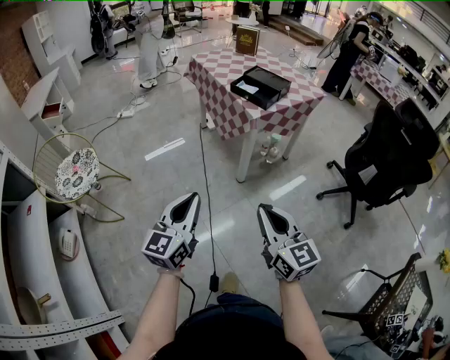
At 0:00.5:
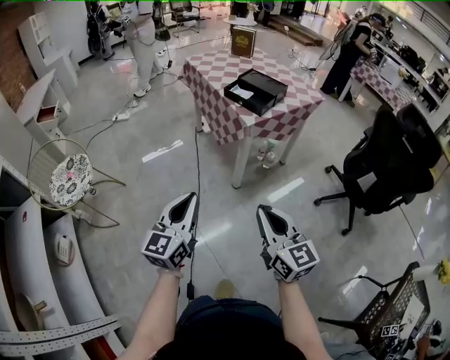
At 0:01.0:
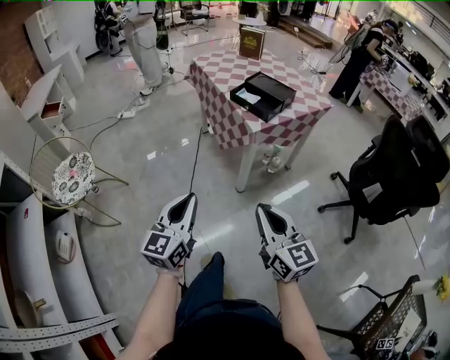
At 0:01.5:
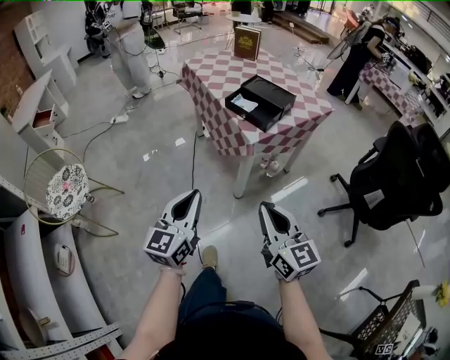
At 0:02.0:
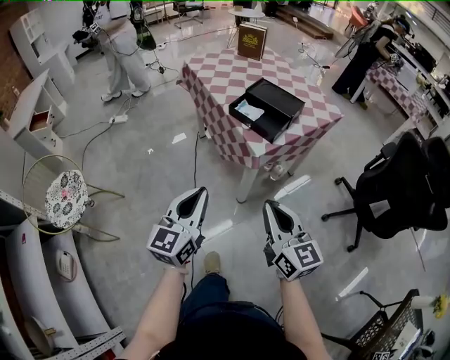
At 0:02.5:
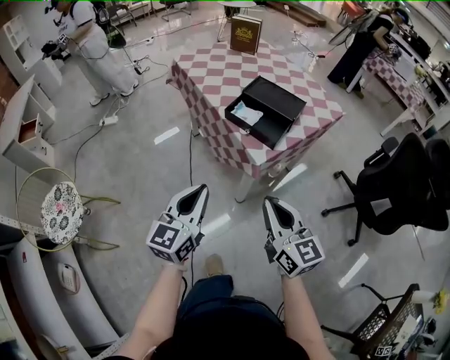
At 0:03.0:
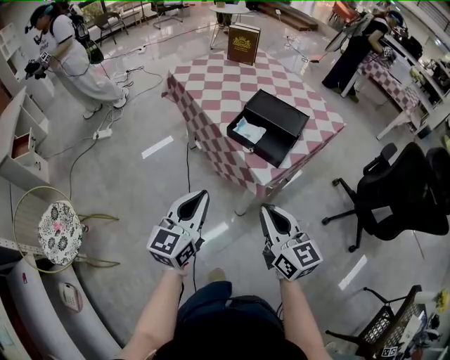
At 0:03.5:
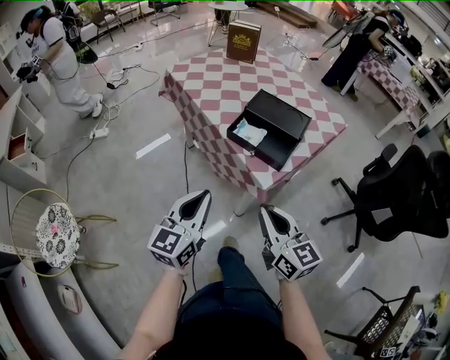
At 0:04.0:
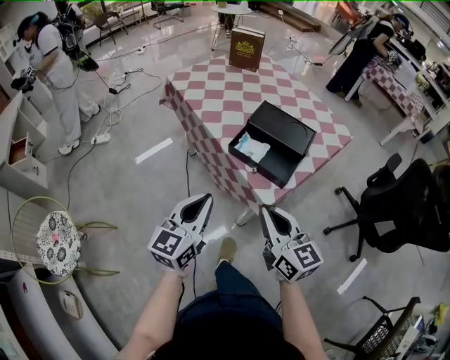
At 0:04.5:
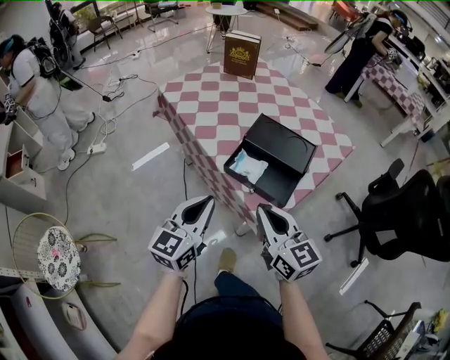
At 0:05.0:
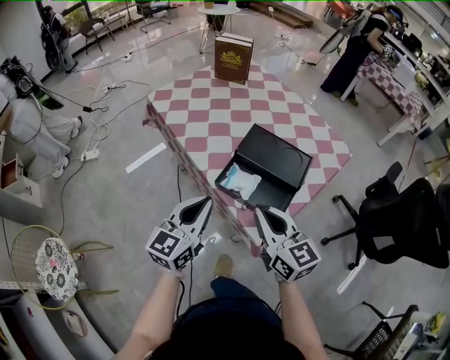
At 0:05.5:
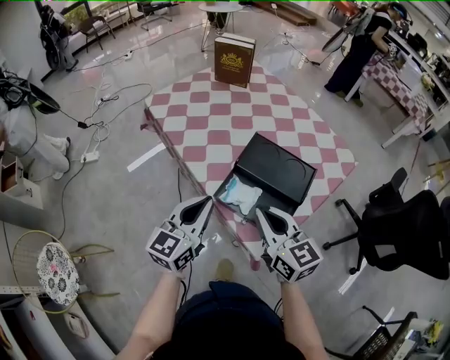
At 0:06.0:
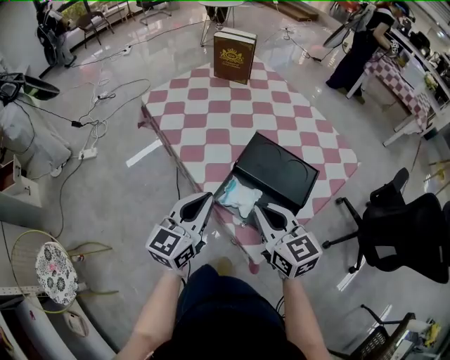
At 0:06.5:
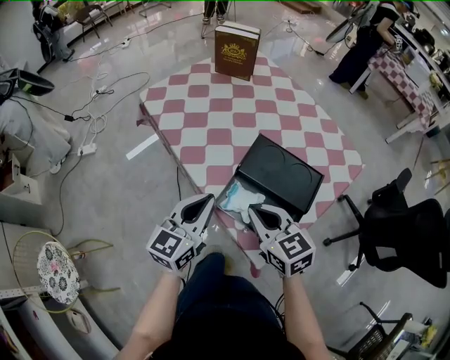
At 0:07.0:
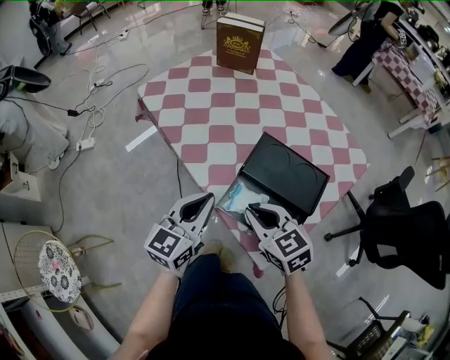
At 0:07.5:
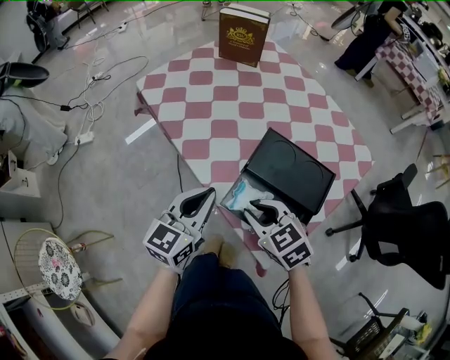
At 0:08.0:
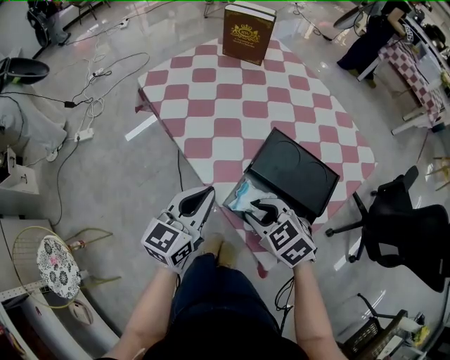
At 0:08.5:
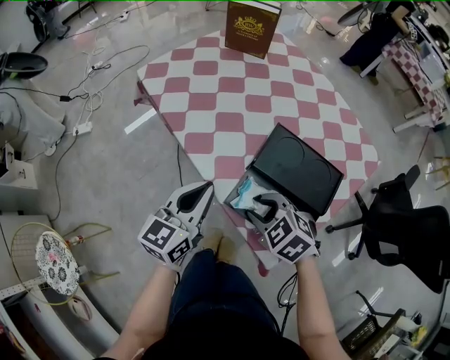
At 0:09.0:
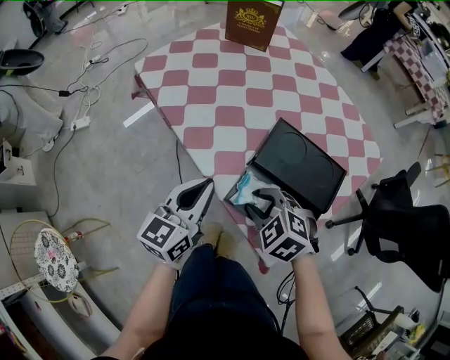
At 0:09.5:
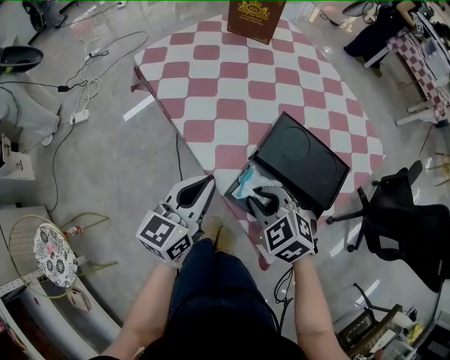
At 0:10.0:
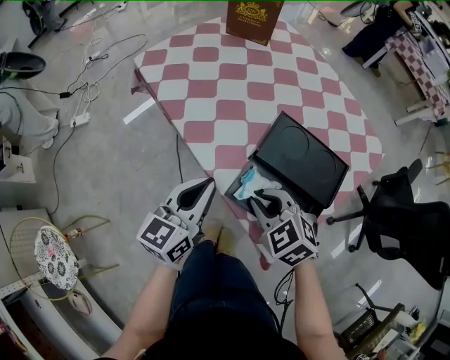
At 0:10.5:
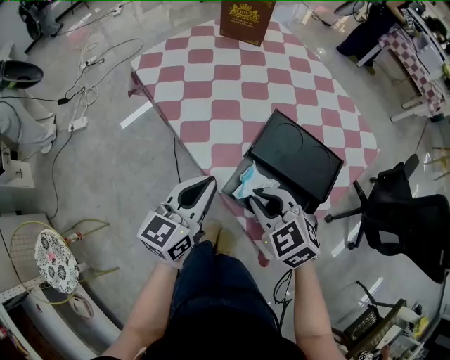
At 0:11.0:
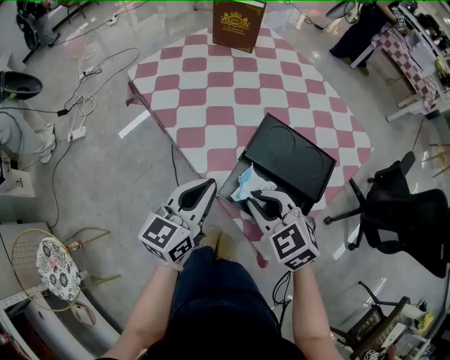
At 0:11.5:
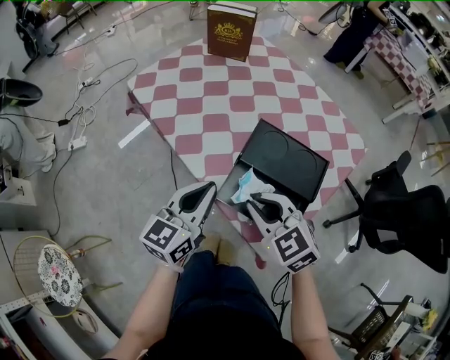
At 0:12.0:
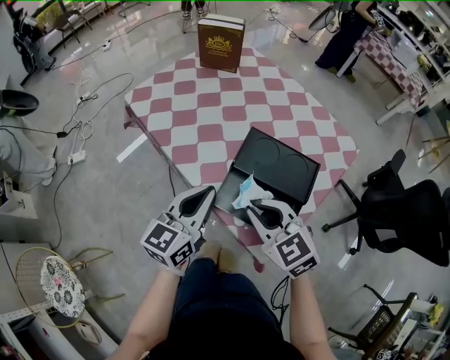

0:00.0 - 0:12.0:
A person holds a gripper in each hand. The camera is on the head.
0:00.0 - 0:02.0: The two grippers go approximately 30 cm forward.
0:02.0 - 0:04.0: The two grippers go some 25 cm forward.
0:04.0 - 0:06.0: Both grippers move forward, some 20 cm.
0:06.0 - 0:08.0: The right gripper shifts approximately 10 cm downward, angles its fingers downward, by approximately 30 degrees, and opens; the left gripper shifts about 5 cm forward.
0:08.0 - 0:10.0: The grippers make only small movements.
0:10.0 - 0:12.0: The right gripper is displaced upward by about 10 cm, and swivels approximately 20 degrees. The left gripper heads upward, covering some 5 cm.

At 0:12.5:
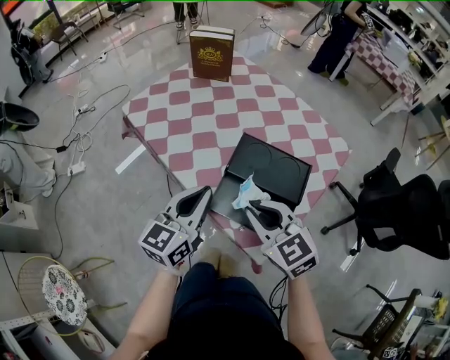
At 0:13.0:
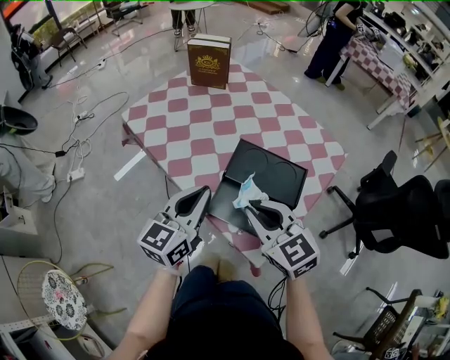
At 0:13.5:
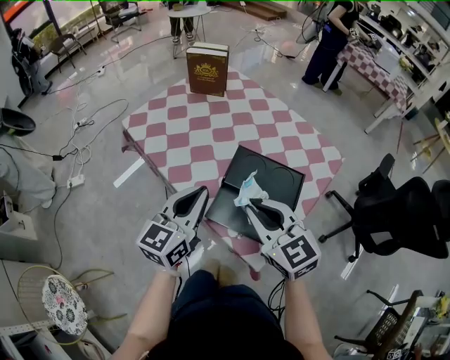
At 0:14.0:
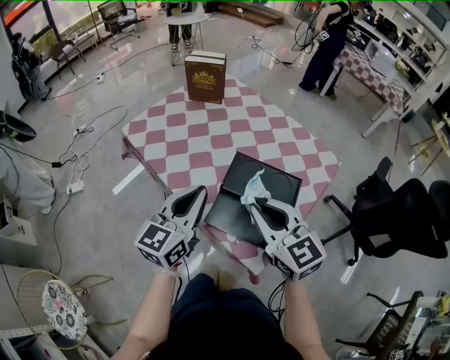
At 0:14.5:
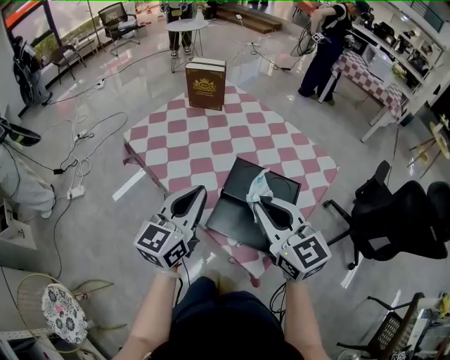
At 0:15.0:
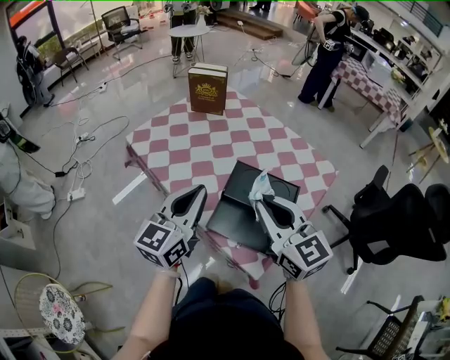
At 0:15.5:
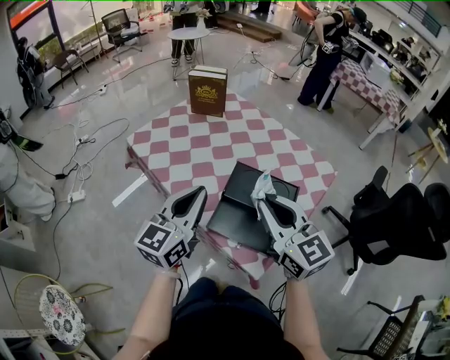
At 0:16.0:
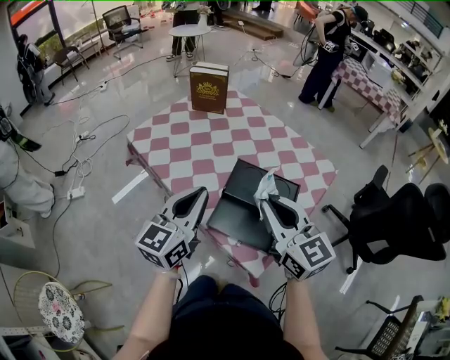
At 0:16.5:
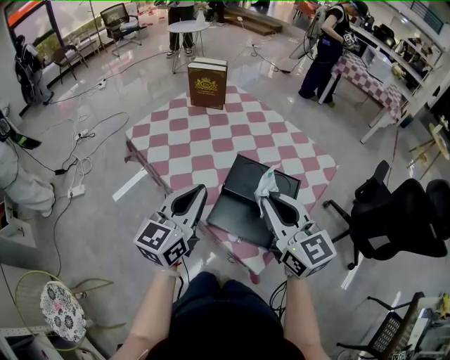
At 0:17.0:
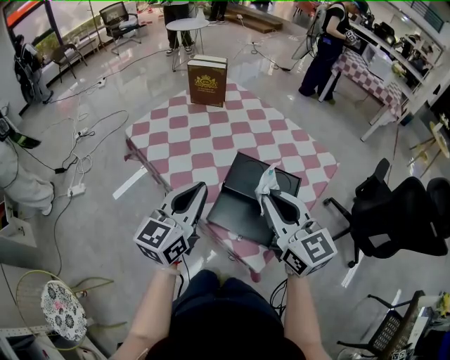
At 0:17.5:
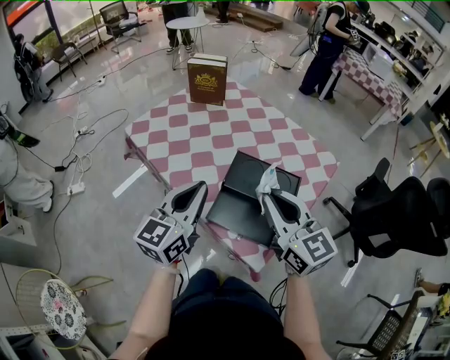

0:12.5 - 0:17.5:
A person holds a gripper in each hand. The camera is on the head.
0:12.5 - 0:15.0: The grippers both shift upward by some 10 cm. The right gripper changes its angle by about 20 degrees.
0:15.0 - 0:17.5: The grippers stay close to where they were, moving slightly.

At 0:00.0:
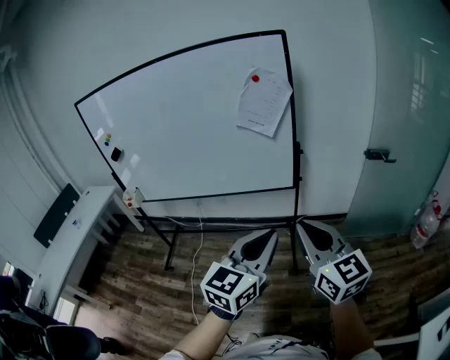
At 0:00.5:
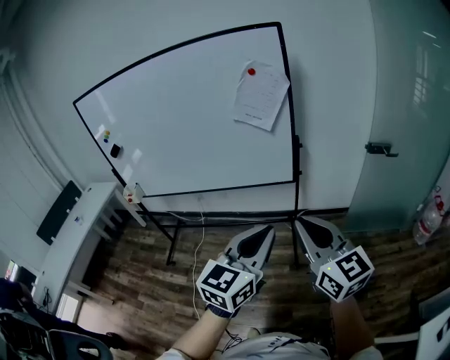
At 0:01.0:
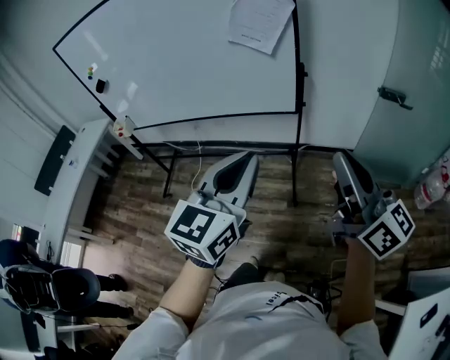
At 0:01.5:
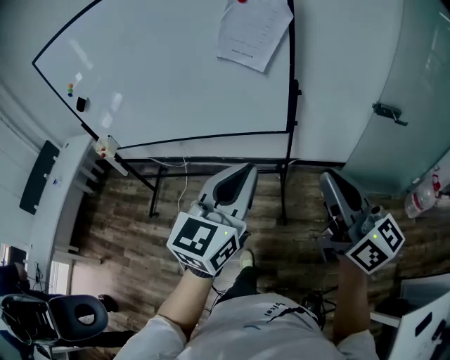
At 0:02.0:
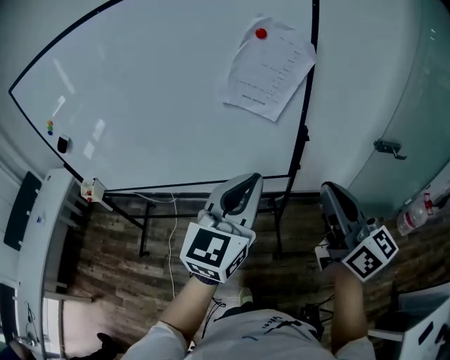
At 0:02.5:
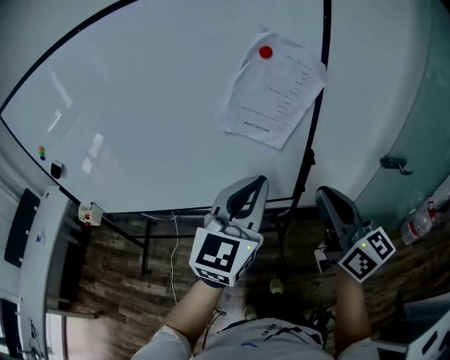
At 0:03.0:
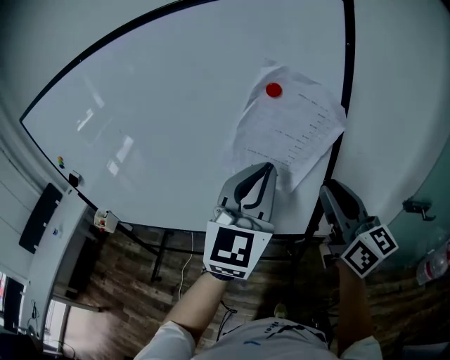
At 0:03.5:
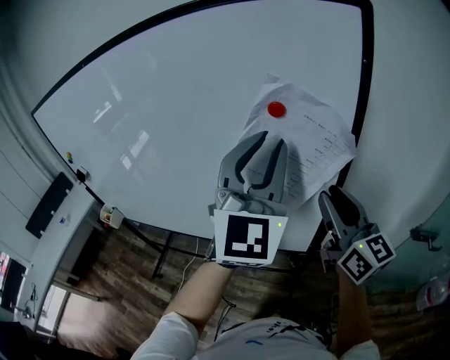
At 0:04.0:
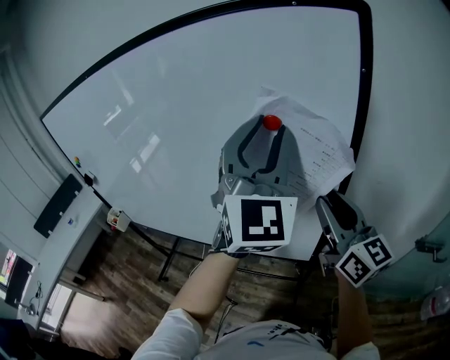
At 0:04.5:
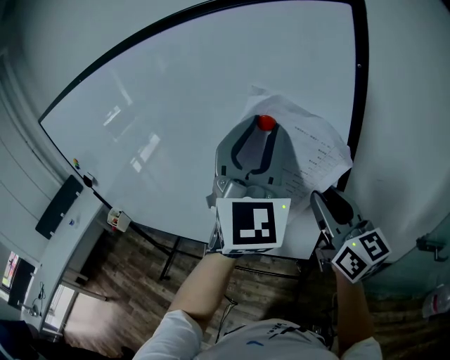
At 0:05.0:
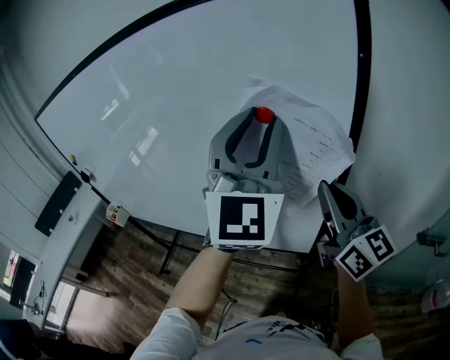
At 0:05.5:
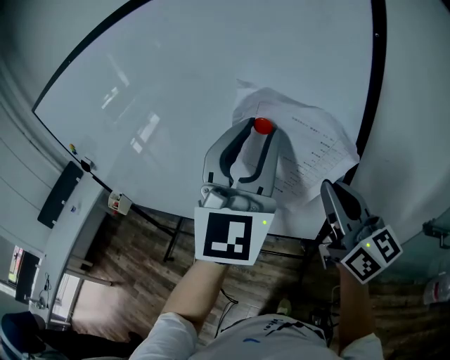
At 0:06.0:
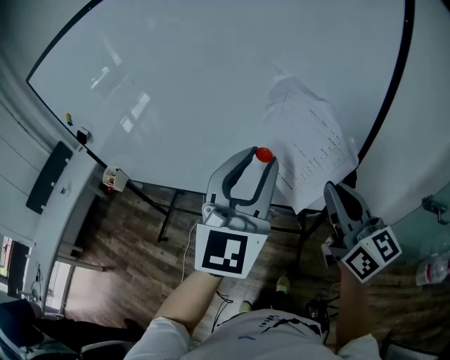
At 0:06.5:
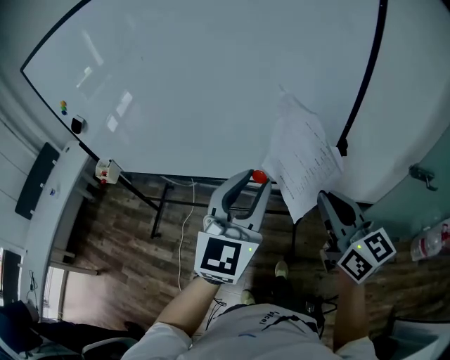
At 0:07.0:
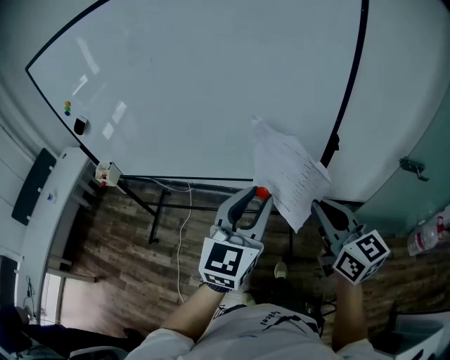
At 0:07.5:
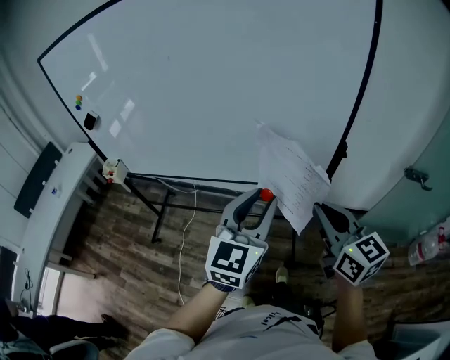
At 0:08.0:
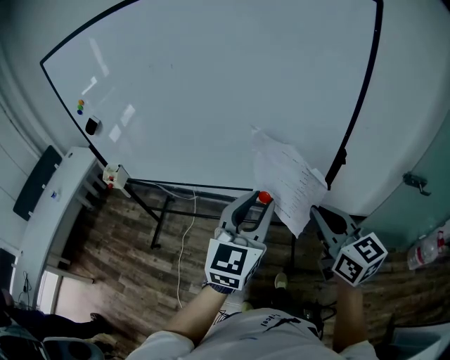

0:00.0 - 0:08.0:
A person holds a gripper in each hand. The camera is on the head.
0:00.0 - 0:02.0: The grippers both shift forward by approximately 25 cm.
0:02.0 - 0:04.0: The right gripper moves forward, some 30 cm, and opens its fingers; the left gripper is displaced forward and upward by some 35 cm, turns by approximately 50 degrees, and opens up.
0:04.0 - 0:06.0: The left gripper shifts some 20 cm downward, to the left and backward, and changes its angle by some 20 degrees, while the right gripper moves to the left, backward and downward, some 15 cm, and closes its fingers.
0:06.0 - 0:08.0: The right gripper heads backward and to the left, covering approximately 15 cm. Meanwhile the left gripper travels backward, downward and to the left by approximately 20 cm, and swivels roughly 20 degrees.

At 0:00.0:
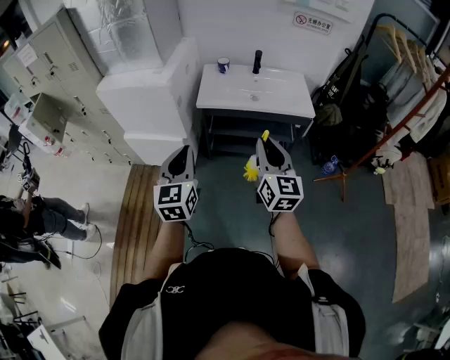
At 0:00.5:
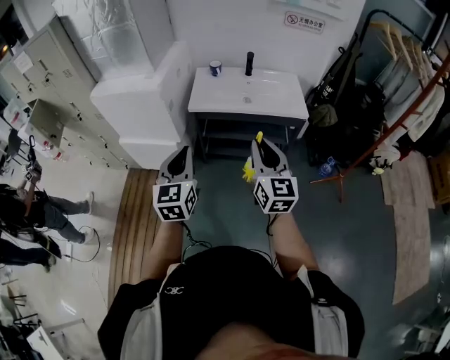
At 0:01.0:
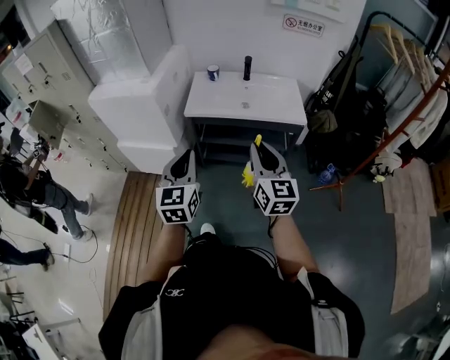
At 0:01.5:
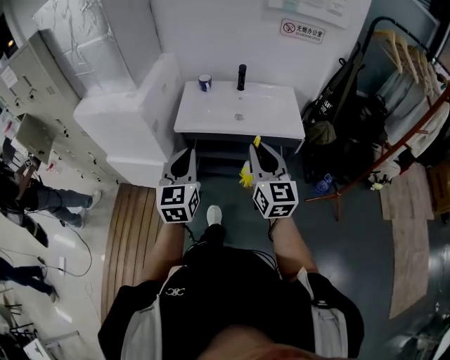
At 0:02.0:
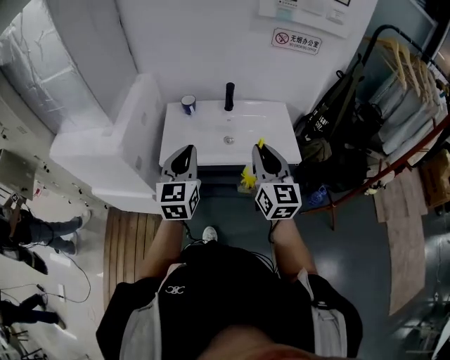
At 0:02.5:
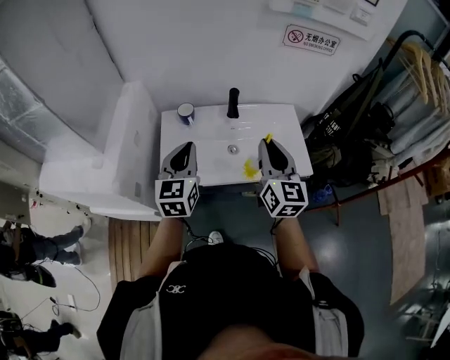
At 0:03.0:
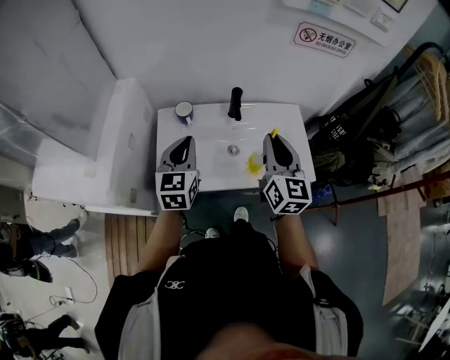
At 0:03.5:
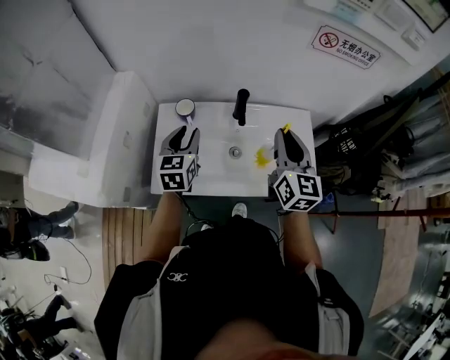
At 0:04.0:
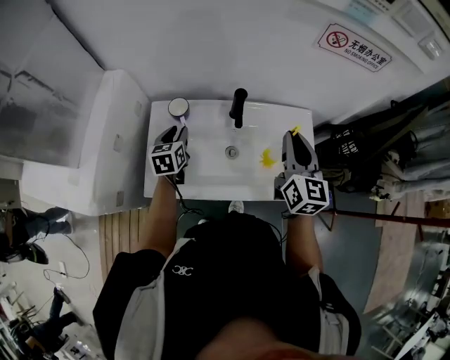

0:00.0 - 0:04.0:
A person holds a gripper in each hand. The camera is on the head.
0:00.0 - 0:02.0: The right gripper is displaced forward by some 30 cm. The left gripper moves forward and to the right, roughly 35 cm.
0:02.0 - 0:04.0: The left gripper goes about 40 cm forward and downward, turns by approximately 30 degrees, and opens its fingers; the right gripper shifts about 35 cm forward.
